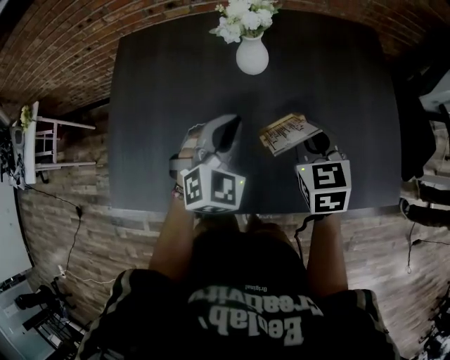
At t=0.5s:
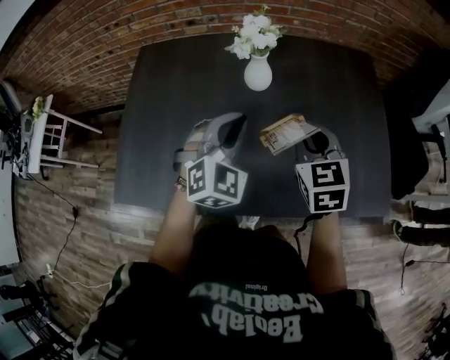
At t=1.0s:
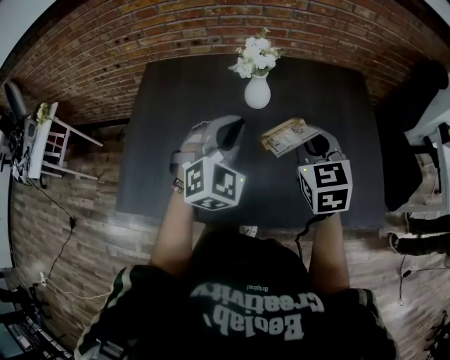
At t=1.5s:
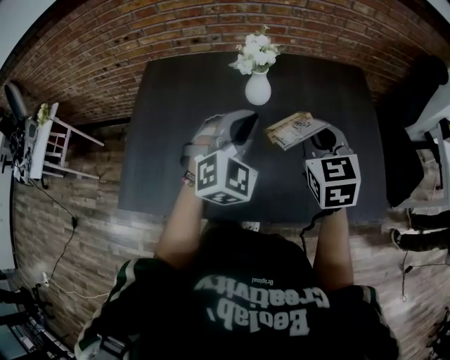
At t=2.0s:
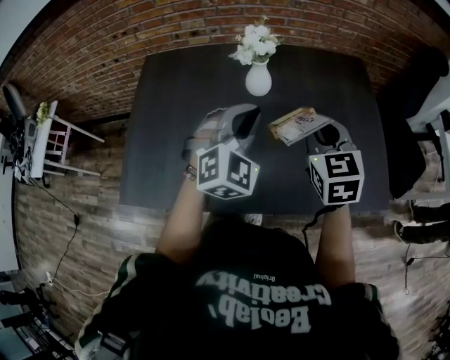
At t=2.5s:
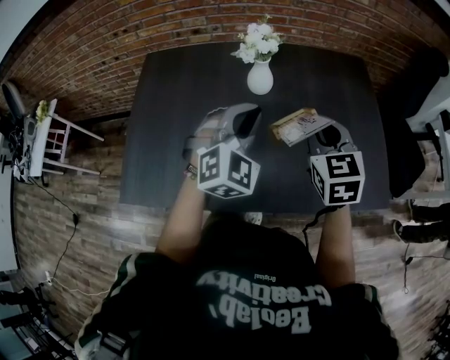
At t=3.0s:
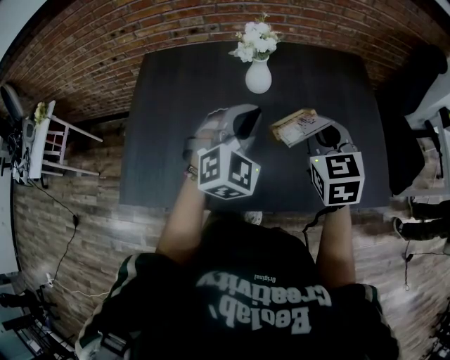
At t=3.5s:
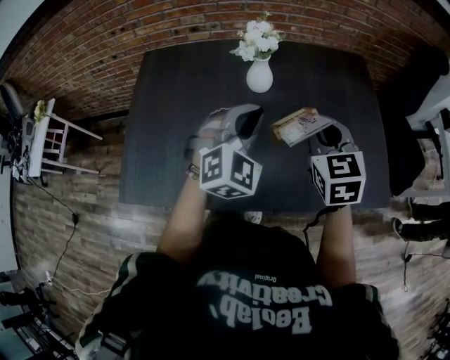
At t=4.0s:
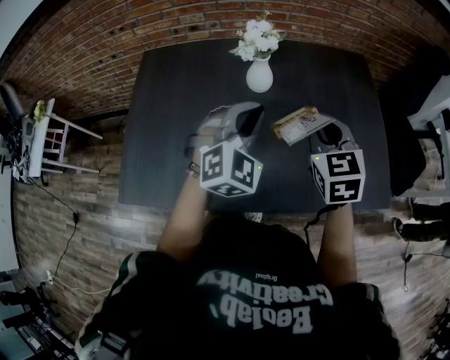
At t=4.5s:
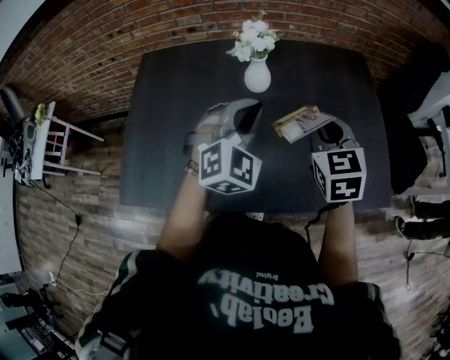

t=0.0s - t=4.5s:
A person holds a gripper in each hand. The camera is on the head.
t=0.0s - t=2.0s: The two grippers go roughly 10 cm upward.
t=2.0s - t=4.5s: The grippers stay close to where they were, moving slightly.

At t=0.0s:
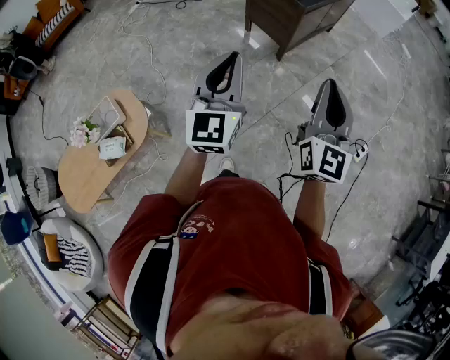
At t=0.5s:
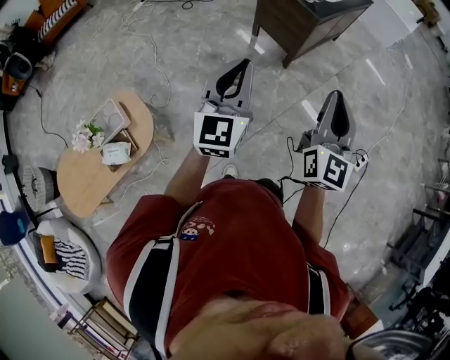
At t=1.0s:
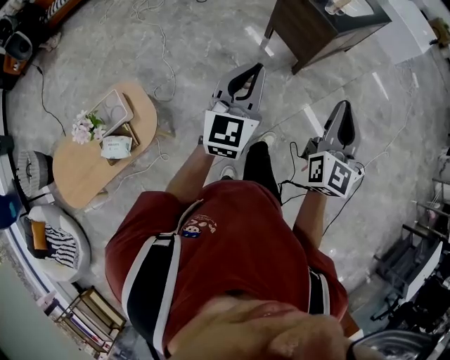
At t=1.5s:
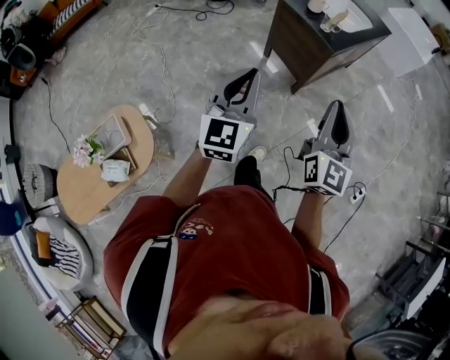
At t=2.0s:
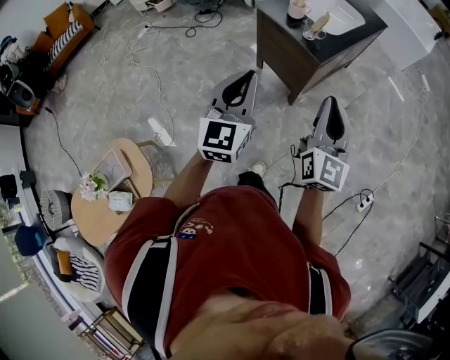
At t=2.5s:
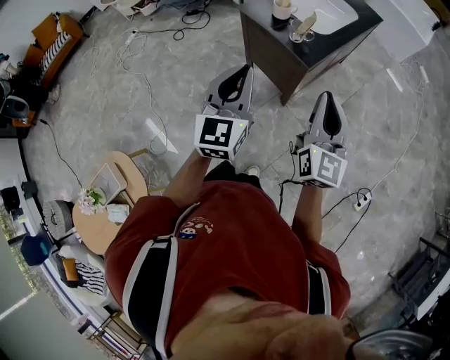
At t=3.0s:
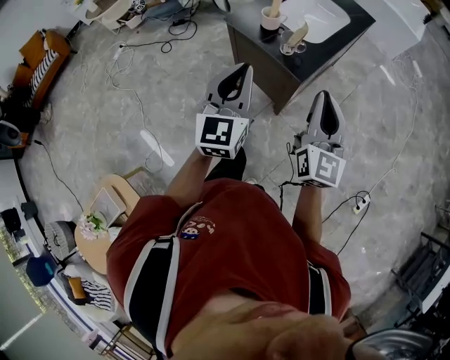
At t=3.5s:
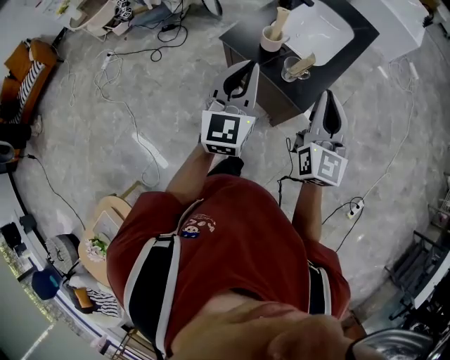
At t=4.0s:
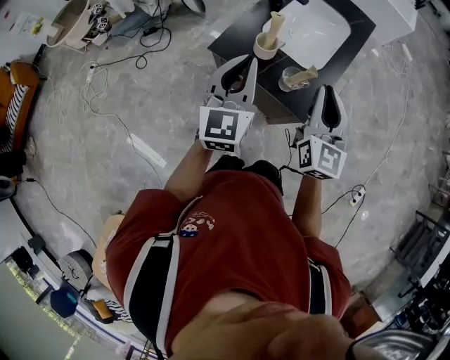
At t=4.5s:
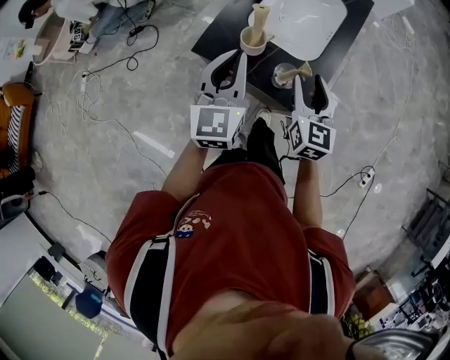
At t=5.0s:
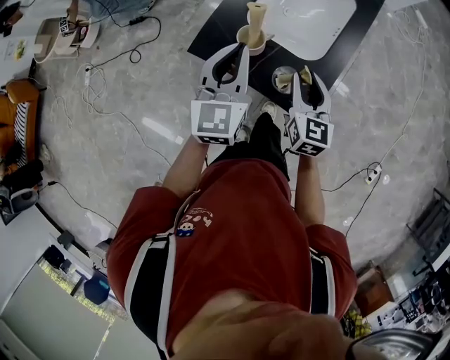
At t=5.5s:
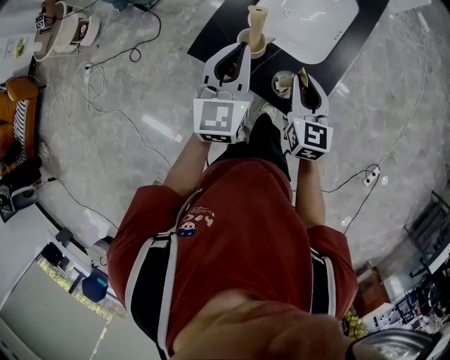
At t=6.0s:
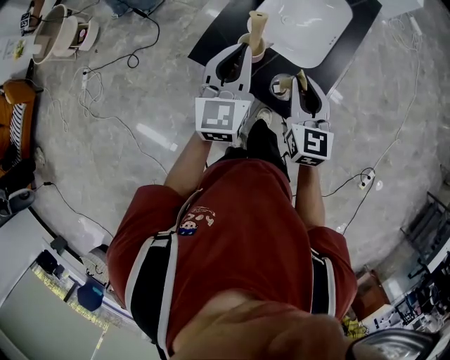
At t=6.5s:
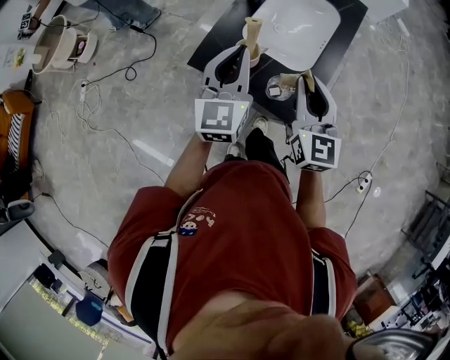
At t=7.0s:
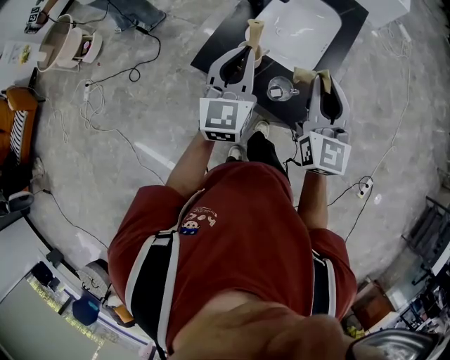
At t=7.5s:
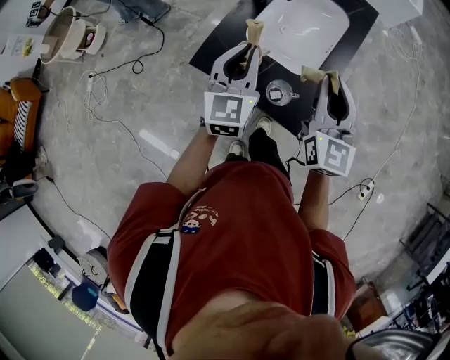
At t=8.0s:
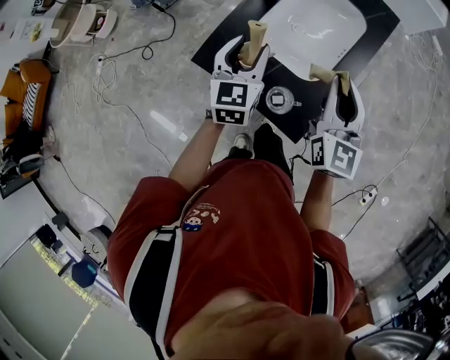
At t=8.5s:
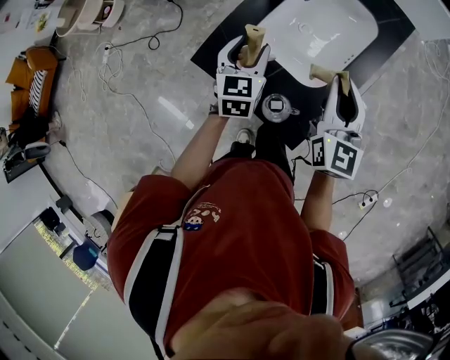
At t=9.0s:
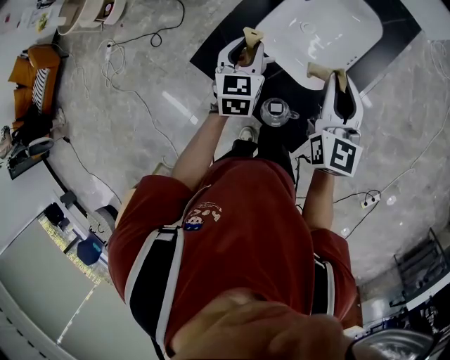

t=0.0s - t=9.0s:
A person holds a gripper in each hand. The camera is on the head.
t=0.0s - t=2.0s: The two grippers go some 30 cm forward.
t=2.0s - t=4.5s: The pair of grippers is taken forward, roughly 40 cm. The right gripper swivels roughly 30 degrees, and opens its fingers.
t=4.5s - t=7.0s: The left gripper ends up roughly 5 cm from where it was. Meanwhile the right gripper is displaced upward by about 10 cm, and closes up.
t=7.0s - t=9.0s: The left gripper travels downward and forward by some 20 cm, turns by roughly 30 degrees, and opens; the right gripper is displaced forward and downward by some 15 cm.

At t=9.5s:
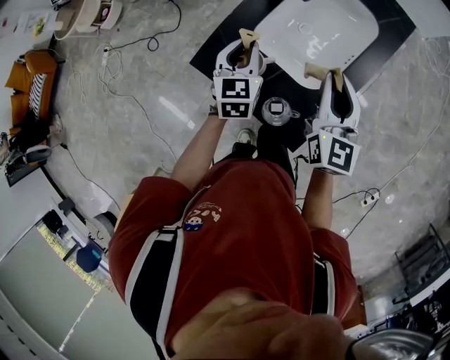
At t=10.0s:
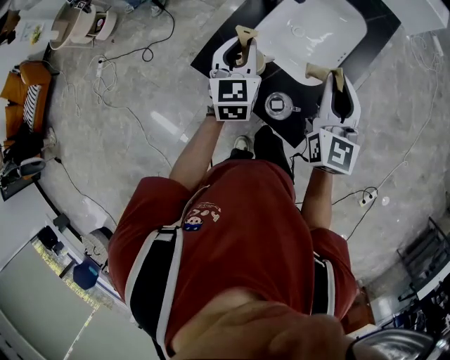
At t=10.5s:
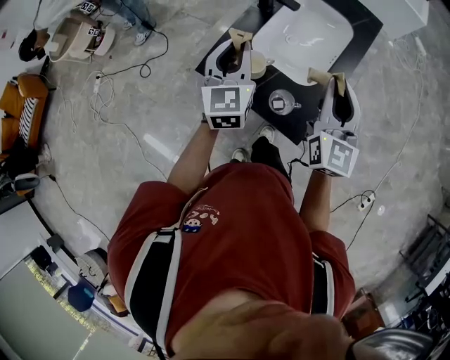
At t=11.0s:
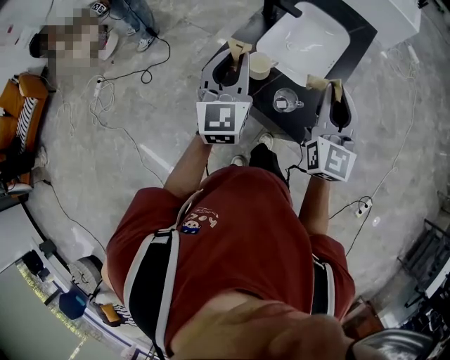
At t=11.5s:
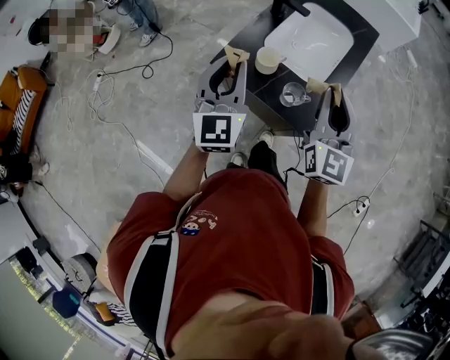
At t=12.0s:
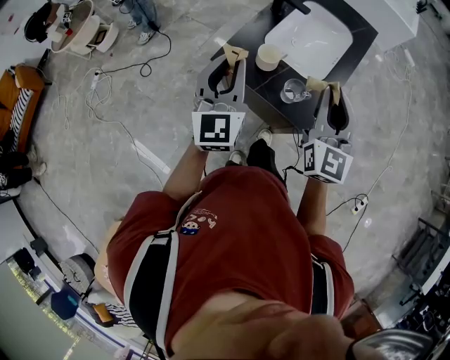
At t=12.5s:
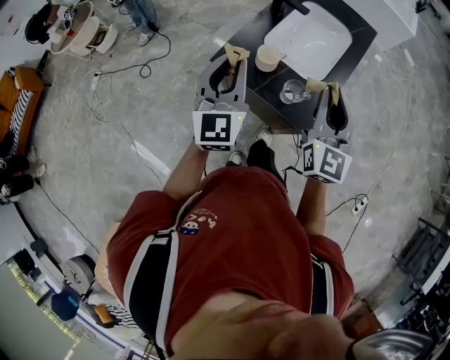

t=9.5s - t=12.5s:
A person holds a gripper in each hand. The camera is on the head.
t=9.5s - t=11.0s: The left gripper shifts approximately 20 cm upward and backward, and turns by roughly 30 degrees. The right gripper moves backward and upward, approximately 15 cm.
t=11.0s - t=12.5s: The left gripper goes some 5 cm backward. The right gripper ends up approximately 5 cm from where it was.

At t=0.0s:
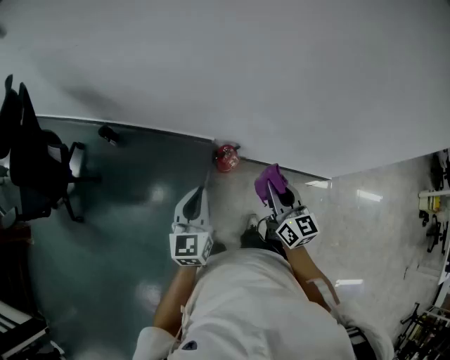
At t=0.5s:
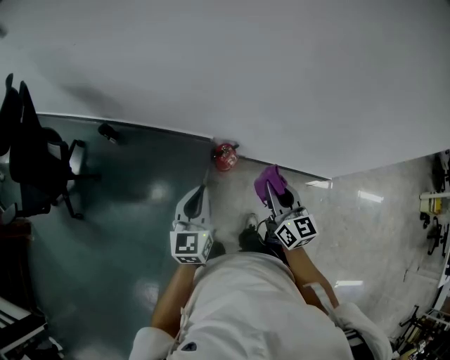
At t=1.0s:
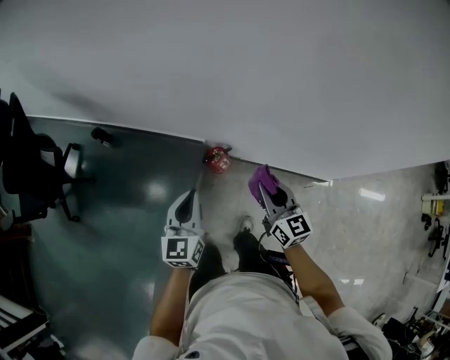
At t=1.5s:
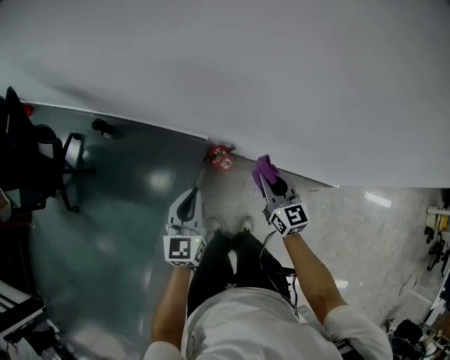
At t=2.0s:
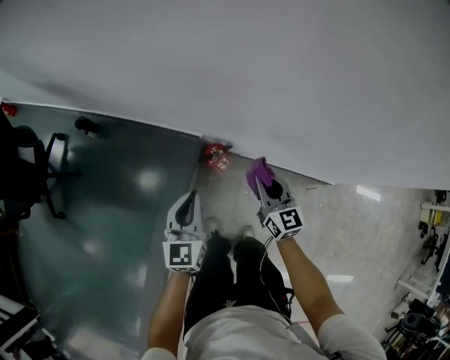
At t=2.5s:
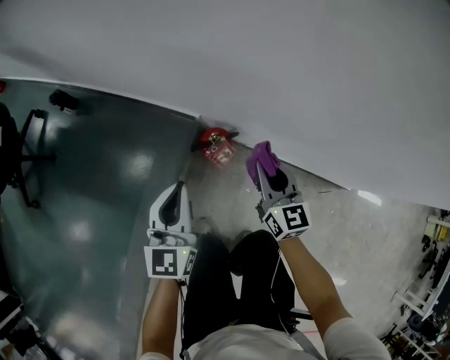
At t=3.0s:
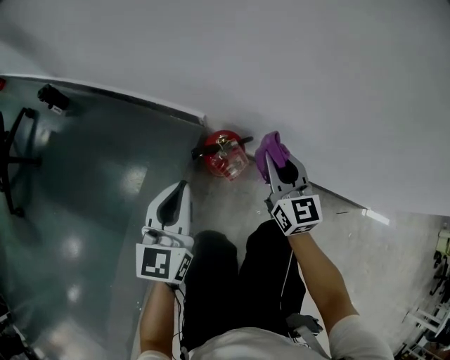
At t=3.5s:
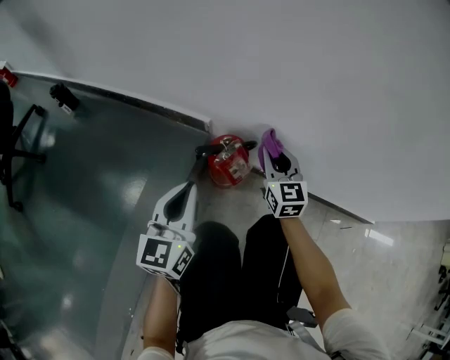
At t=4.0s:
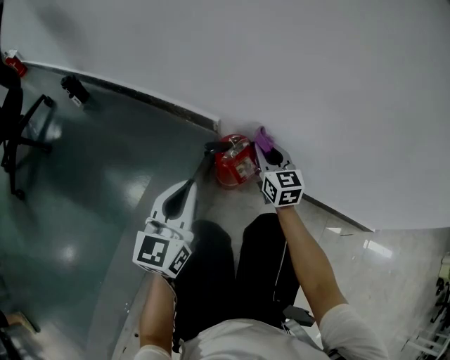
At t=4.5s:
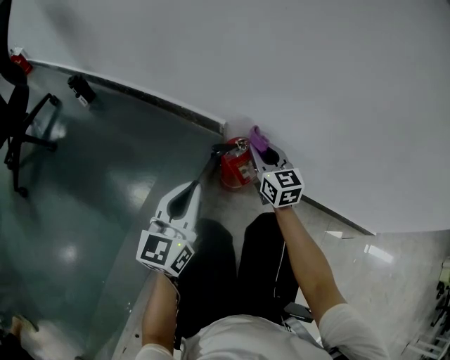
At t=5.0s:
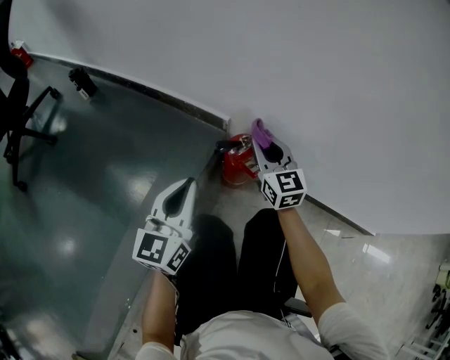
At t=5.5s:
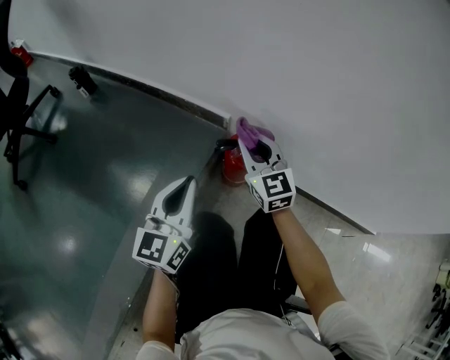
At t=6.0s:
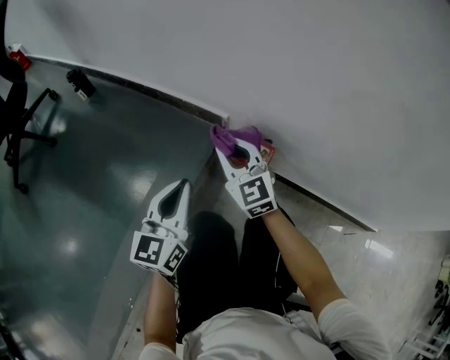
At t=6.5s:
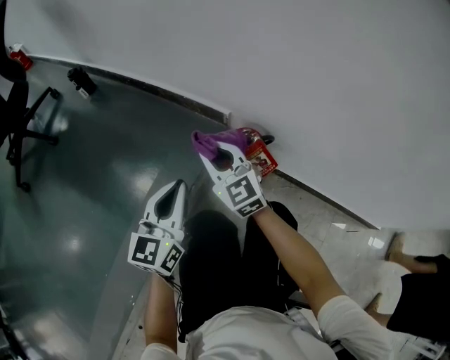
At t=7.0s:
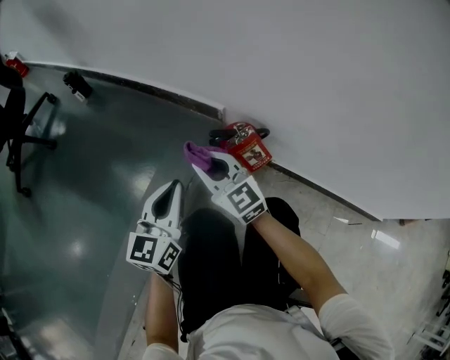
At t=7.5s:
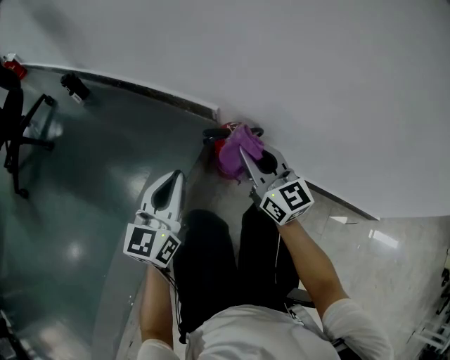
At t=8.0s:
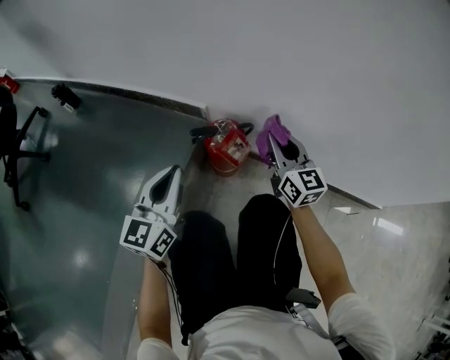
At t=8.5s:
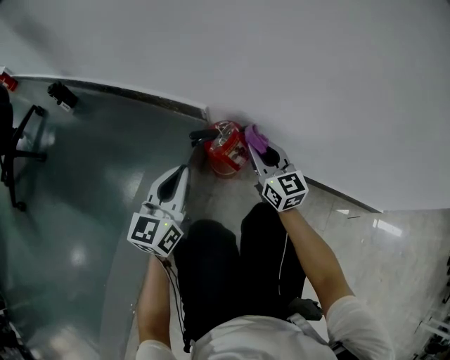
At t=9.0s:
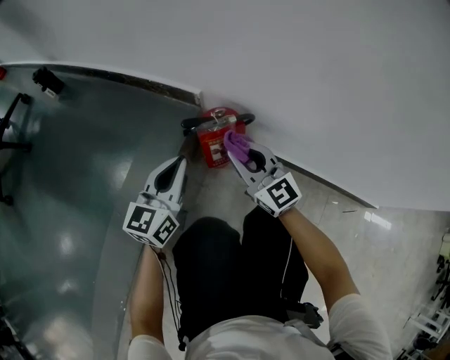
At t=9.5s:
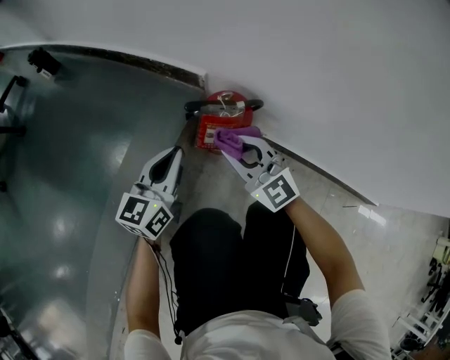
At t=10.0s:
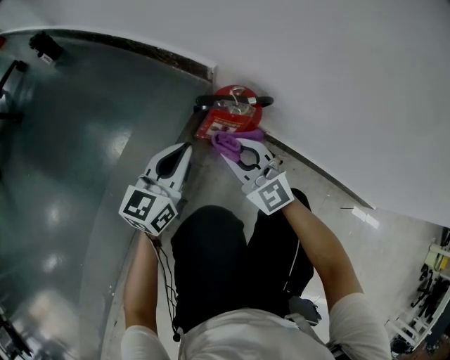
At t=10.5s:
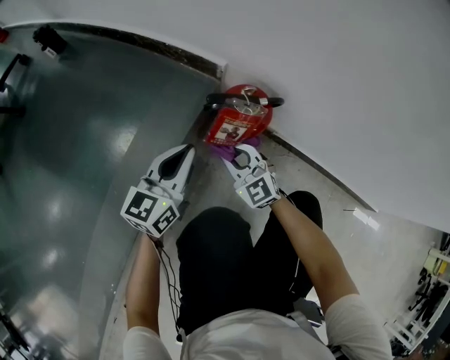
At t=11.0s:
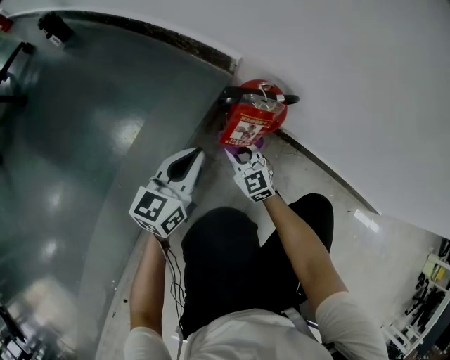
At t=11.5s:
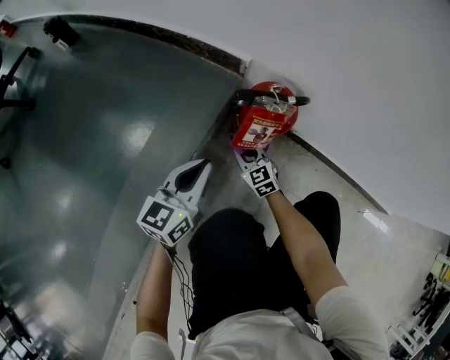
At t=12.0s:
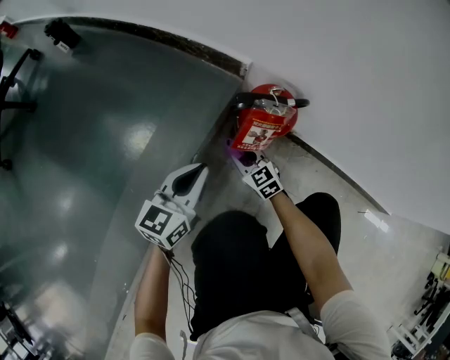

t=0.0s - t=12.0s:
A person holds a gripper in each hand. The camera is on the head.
t=0.0s - t=2.0s: The right gripper heads downward and forward, covering approximately 25 cm. Meanwhile the left gripper is displaced downward, forward and to the right by approximately 20 cm.
t=2.0s - t=4.0s: Both grippers move downward, approximately 35 cm.
t=4.0s - t=6.0s: The right gripper shifts approximately 15 cm to the left and upward, and swivels approximately 20 degrees.
t=6.0s - t=8.0s: The right gripper goes about 20 cm to the right, and turns by approximately 30 degrees.
t=8.0s - t=10.0s: The left gripper goes some 15 cm downward. The right gripper heads to the left and downward, covering roughly 20 cm, and rotates approximately 40 degrees.
t=10.0s - t=12.0s: The right gripper goes about 20 cm downward, and swivels some 30 degrees; the left gripper changes place by roughly 5 cm.
